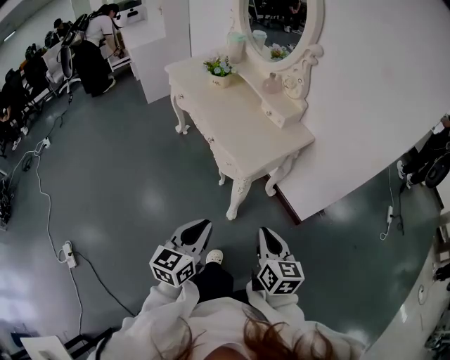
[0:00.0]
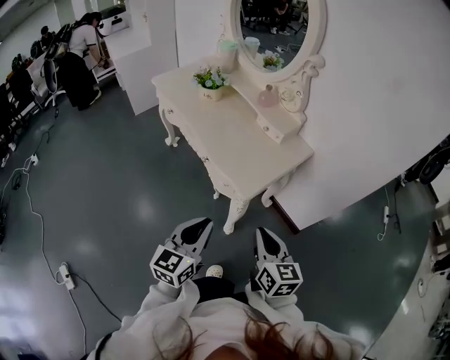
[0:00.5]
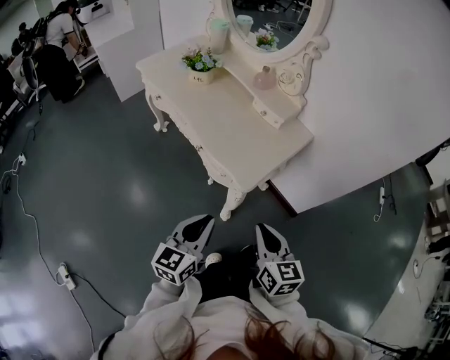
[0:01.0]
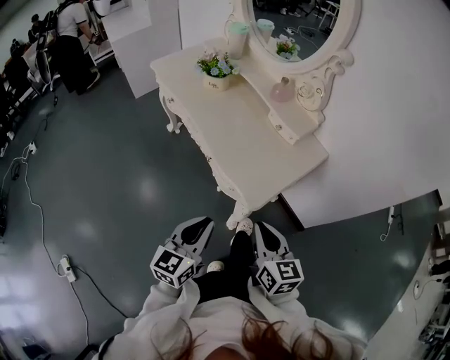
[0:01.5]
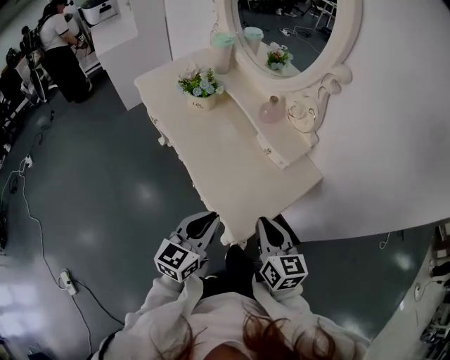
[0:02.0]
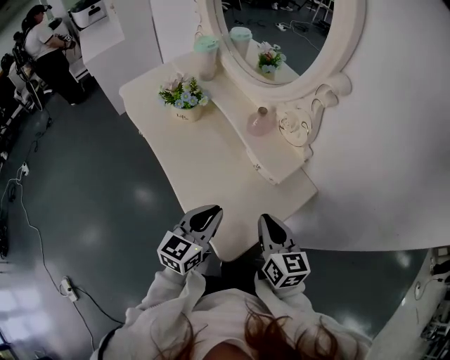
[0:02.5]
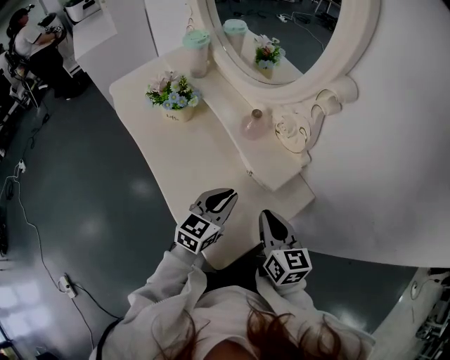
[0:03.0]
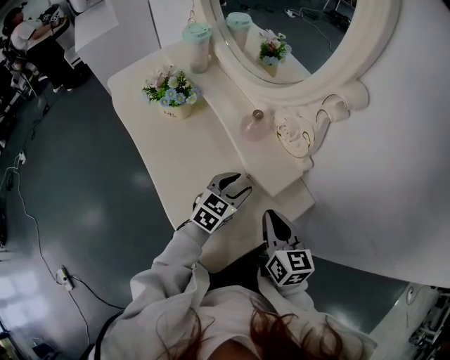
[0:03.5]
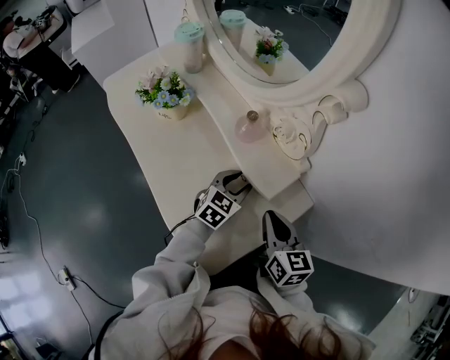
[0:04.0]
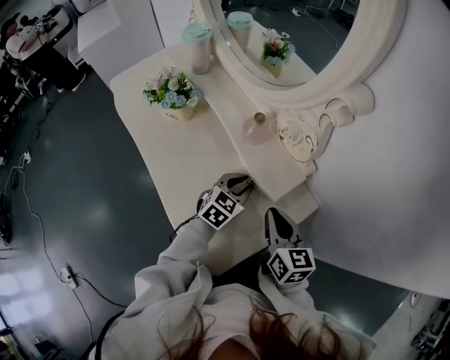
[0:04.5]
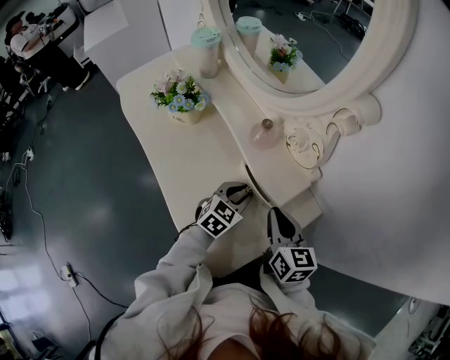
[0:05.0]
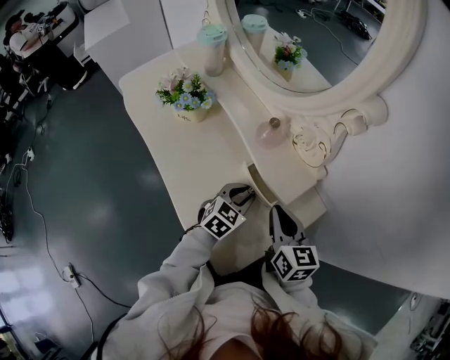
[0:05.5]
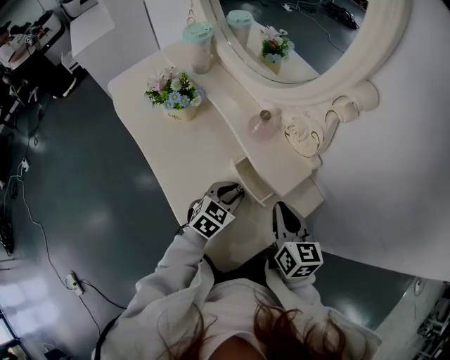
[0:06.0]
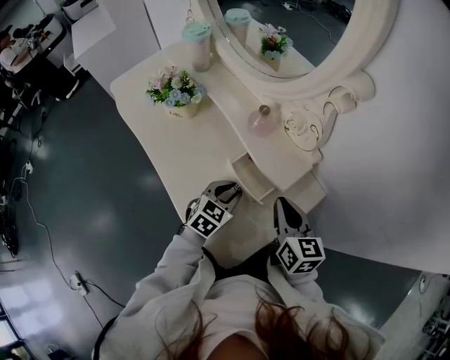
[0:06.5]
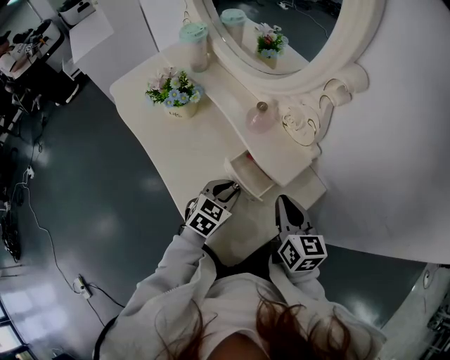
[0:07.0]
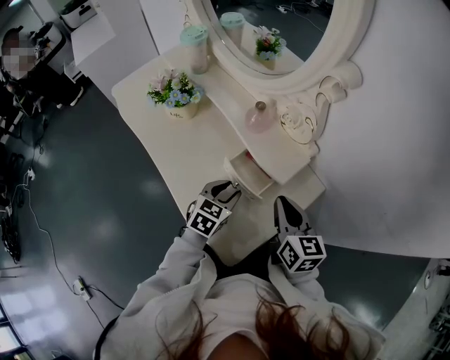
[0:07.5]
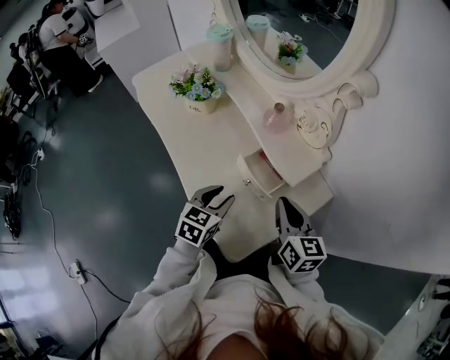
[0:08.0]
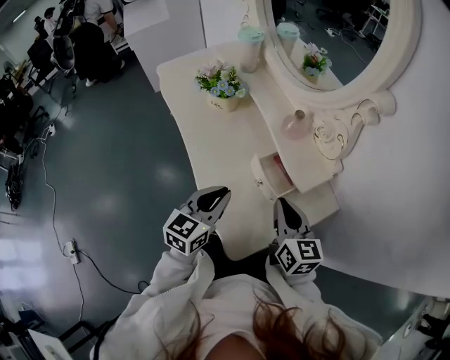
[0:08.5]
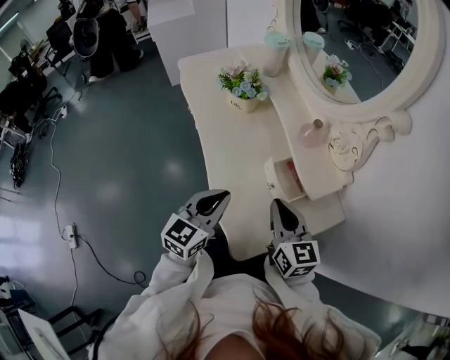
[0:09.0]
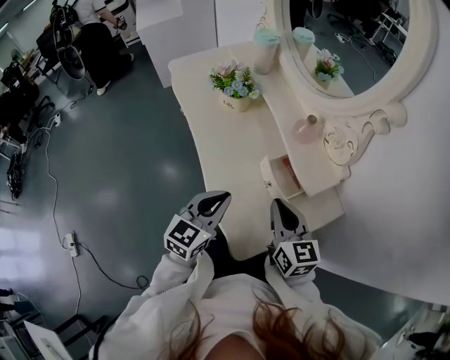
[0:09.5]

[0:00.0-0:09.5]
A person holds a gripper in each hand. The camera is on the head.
0:00.0 to 0:02.0: The grippers both shift forward by about 30 cm.
0:02.0 to 0:04.0: The left gripper heads forward, downward and to the right, covering about 35 cm, swivels about 30 degrees, and opens. Meanwhile the right gripper heads forward and to the right, covering about 20 cm.
0:04.0 to 0:05.5: There are only small adjustments of the grippers.
0:05.5 to 0:07.5: The left gripper ends up roughly 5 cm from where it was.
0:07.5 to 0:09.5: The right gripper shifts roughly 10 cm to the left, and swivels roughly 20 degrees. The left gripper shifts about 15 cm upward, to the left and backward, swivels approximately 30 degrees, and closes.

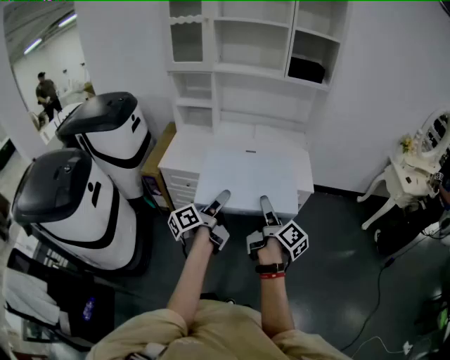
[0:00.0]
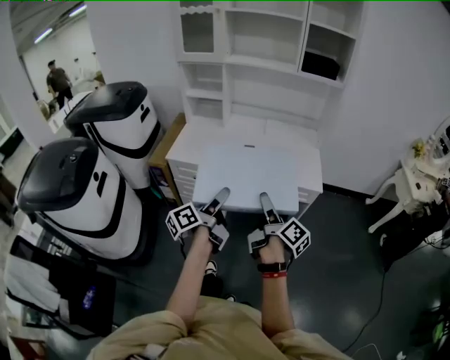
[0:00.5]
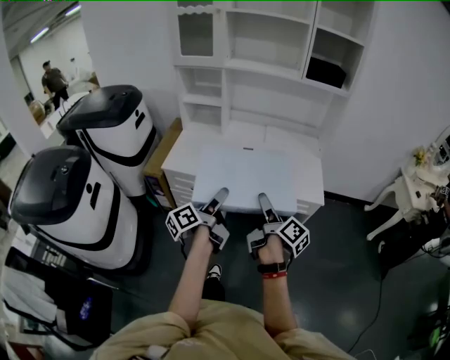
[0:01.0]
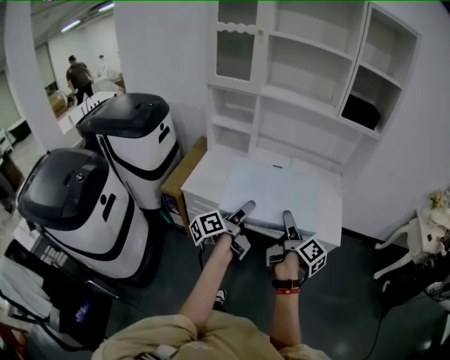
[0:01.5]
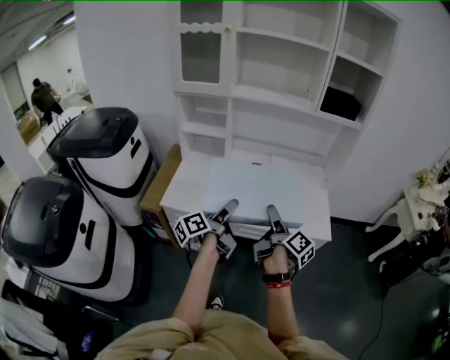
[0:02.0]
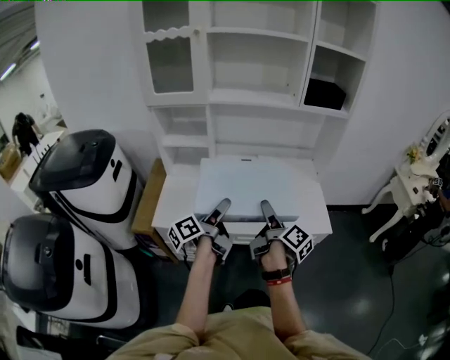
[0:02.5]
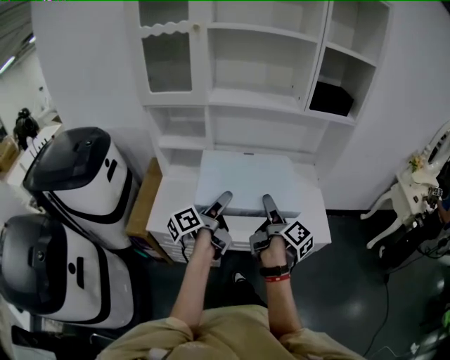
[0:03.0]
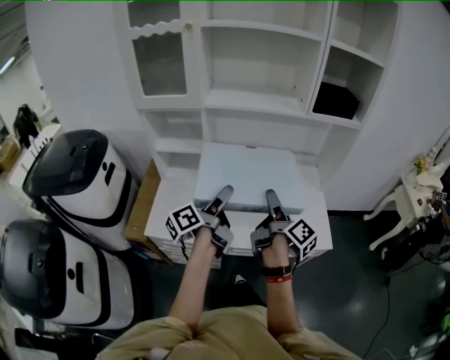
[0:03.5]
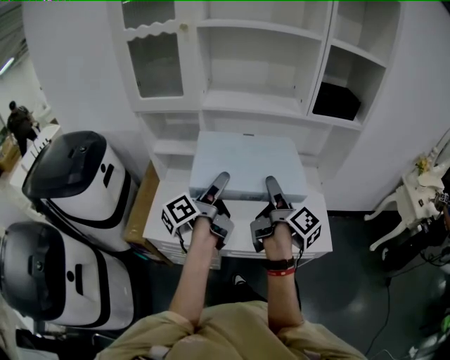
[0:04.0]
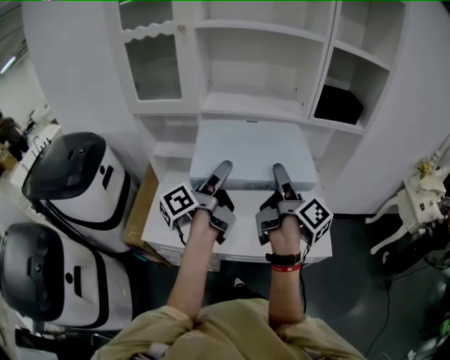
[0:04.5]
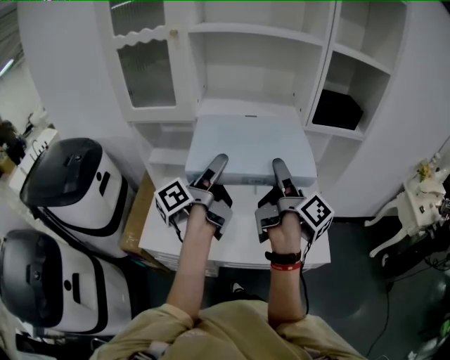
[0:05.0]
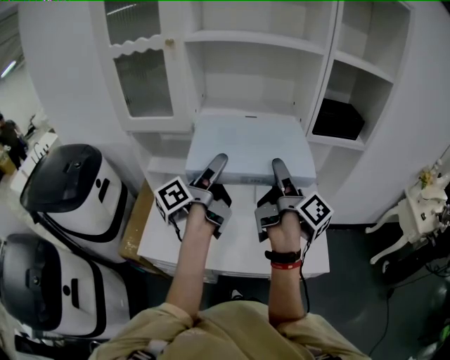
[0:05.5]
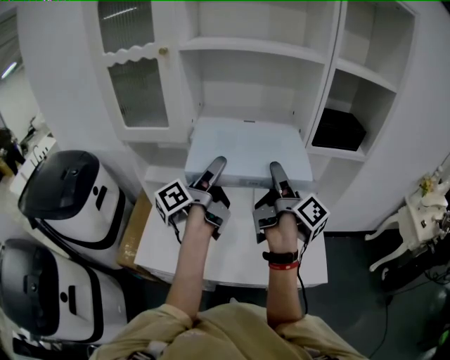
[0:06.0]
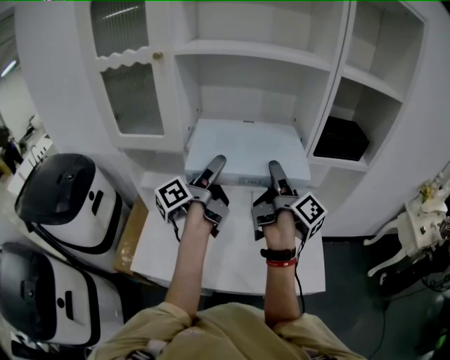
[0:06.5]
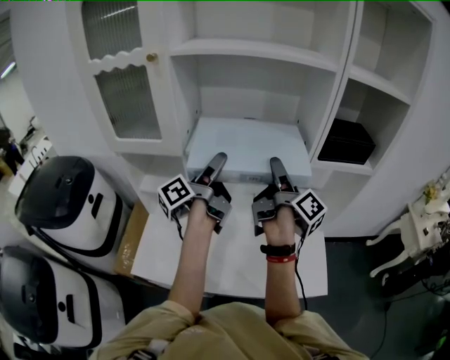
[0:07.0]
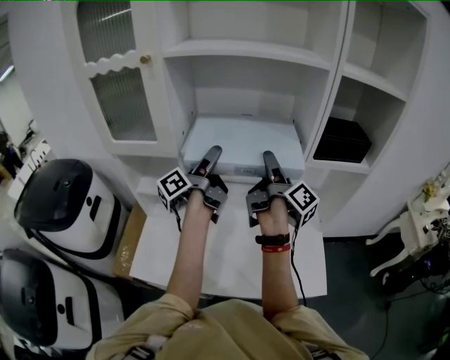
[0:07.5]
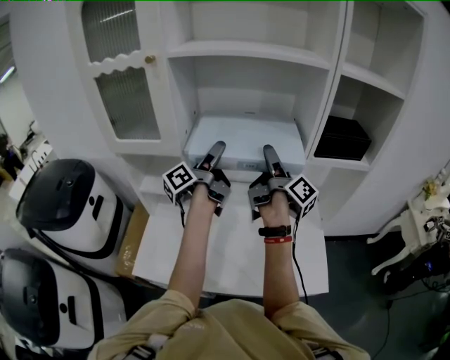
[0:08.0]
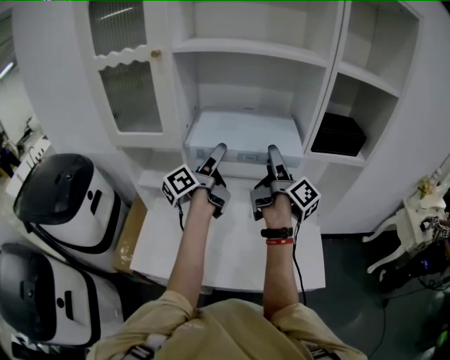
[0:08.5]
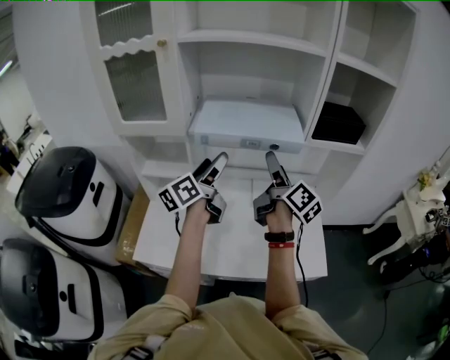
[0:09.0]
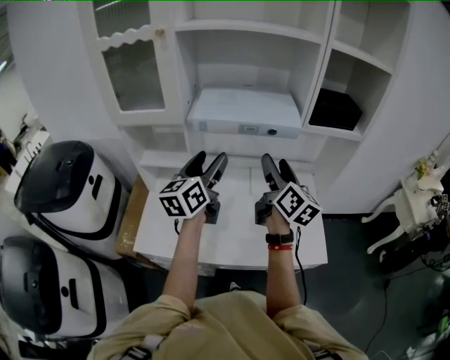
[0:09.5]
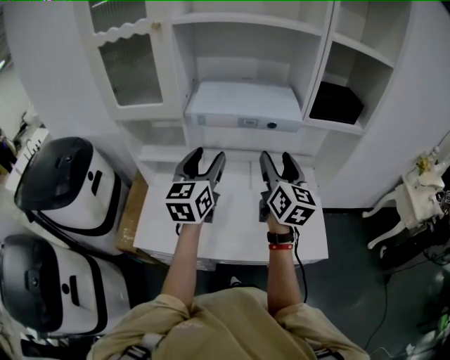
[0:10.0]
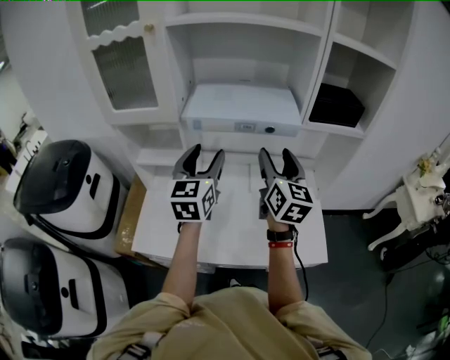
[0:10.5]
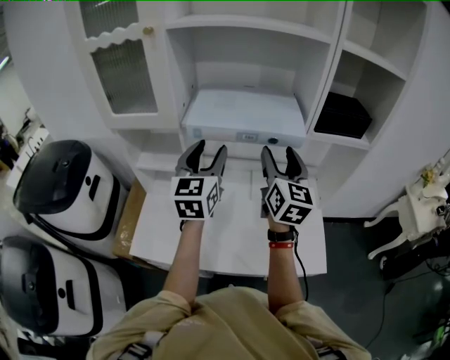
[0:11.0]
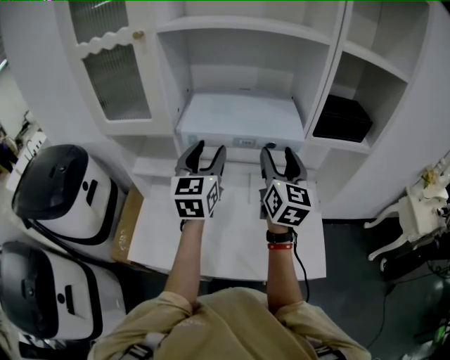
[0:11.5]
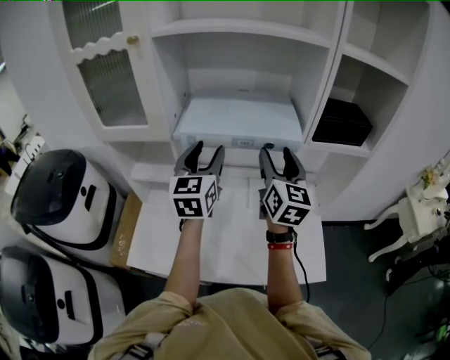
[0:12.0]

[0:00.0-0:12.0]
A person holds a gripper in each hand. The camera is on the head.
0:00.0 to 0:02.0: Both grippers move forward, approximately 25 cm.
0:02.0 to 0:04.0: Both grippers move forward and upward, about 20 cm.
0:04.0 to 0:06.0: Both grippers move forward and upward, approximately 15 cm.
0:06.0 to 0:08.0: Both grippers travel together forward, about 15 cm.
0:08.0 to 0:10.0: Both grippers move backward, roughly 15 cm. The left gripper rotates around the line of its fingers by approximately 70 degrees, clockwise from behind. The right gripper rotates around the line of its fingers by some 70 degrees, counterclockwise from behind.
0:10.0 to 0:12.0: The grippers both shift forward by approximately 10 cm.

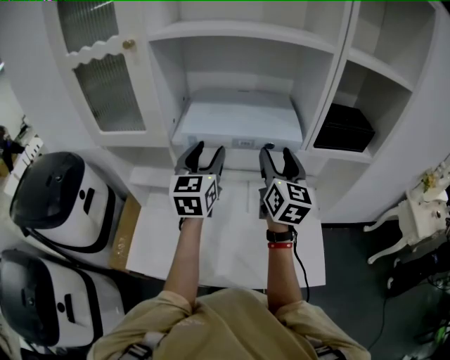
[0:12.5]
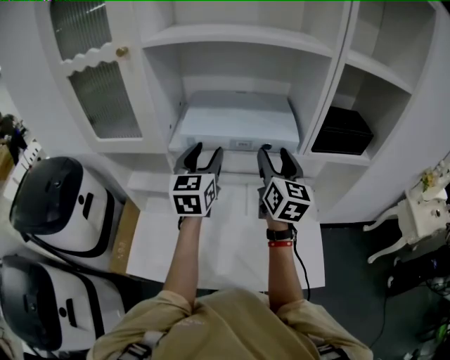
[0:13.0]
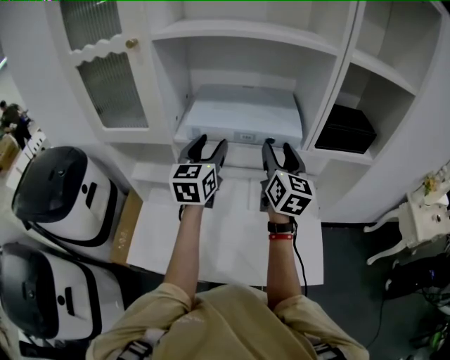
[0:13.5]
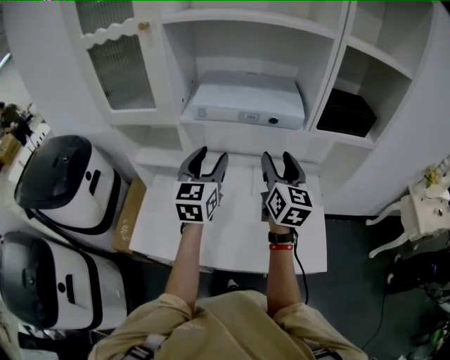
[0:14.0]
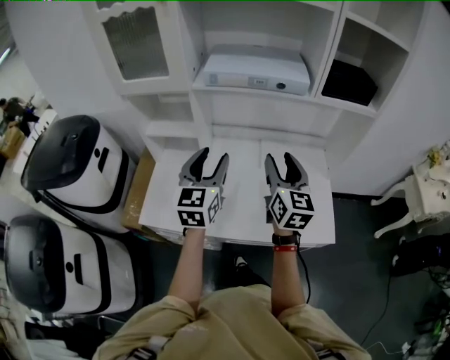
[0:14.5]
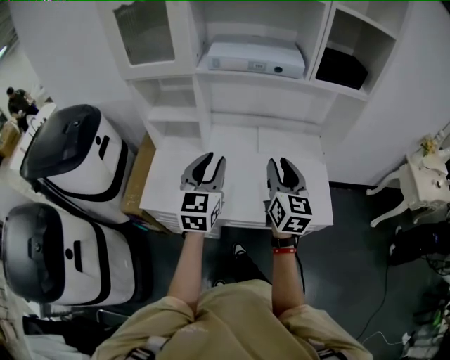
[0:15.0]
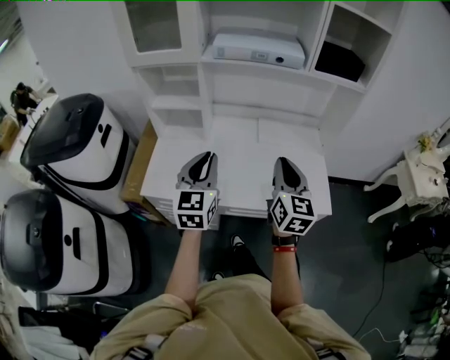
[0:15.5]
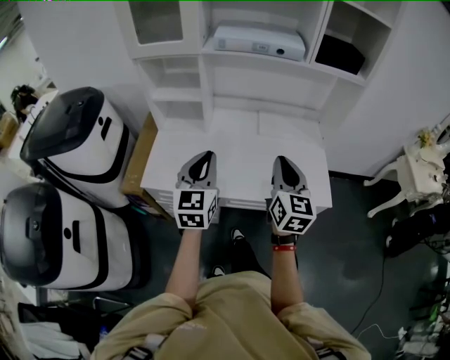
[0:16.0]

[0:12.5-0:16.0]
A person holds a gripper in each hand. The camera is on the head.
0:12.5 to 0:14.5: Both grippers travel together backward and downward, some 20 cm.
0:14.5 to 0:16.0: Both grippers move backward, roughly 15 cm. The left gripper closes. Meanwhile the right gripper closes its fingers.

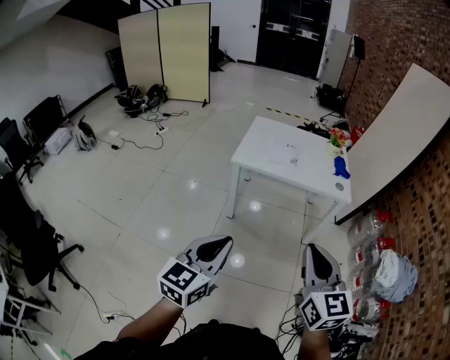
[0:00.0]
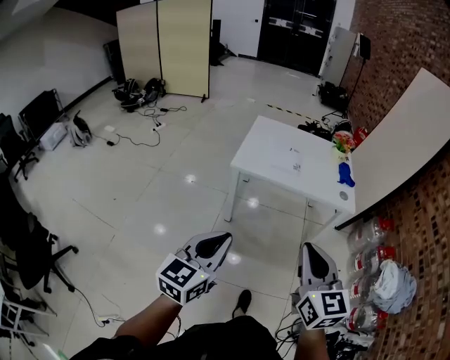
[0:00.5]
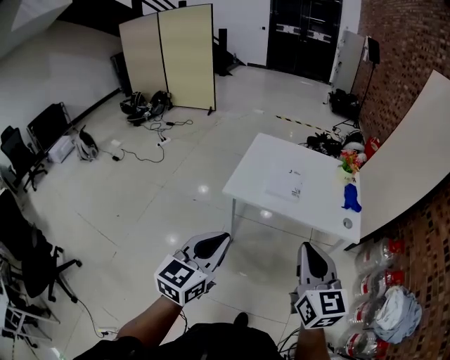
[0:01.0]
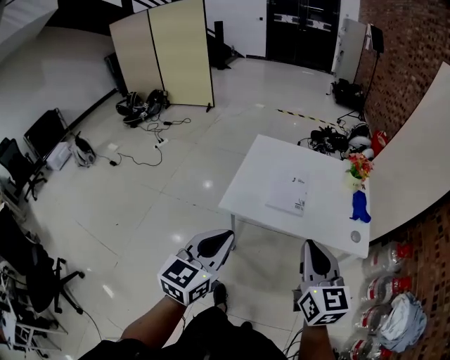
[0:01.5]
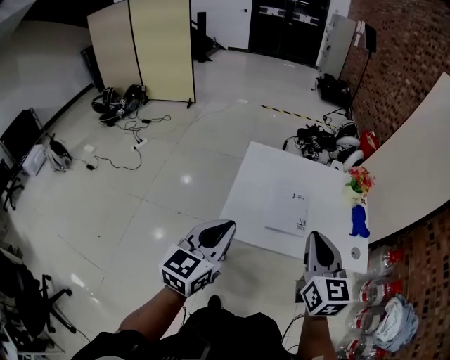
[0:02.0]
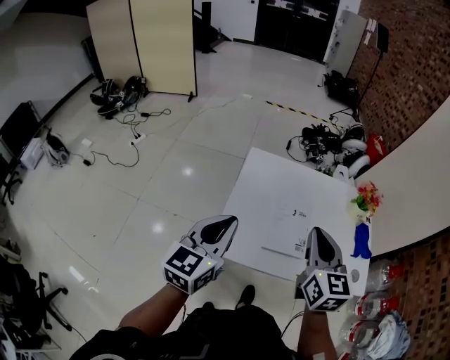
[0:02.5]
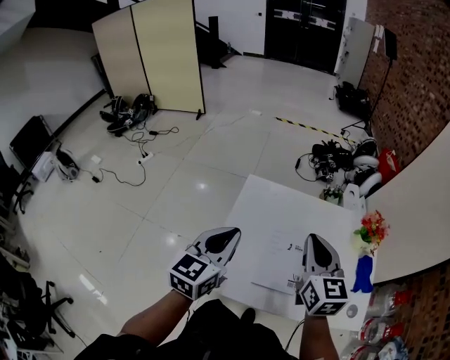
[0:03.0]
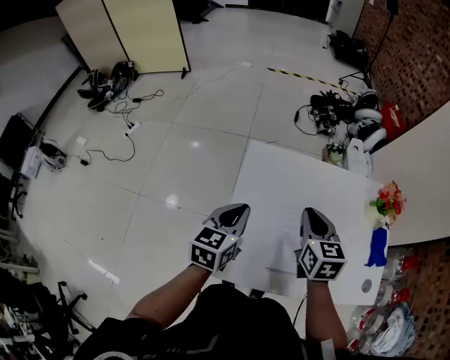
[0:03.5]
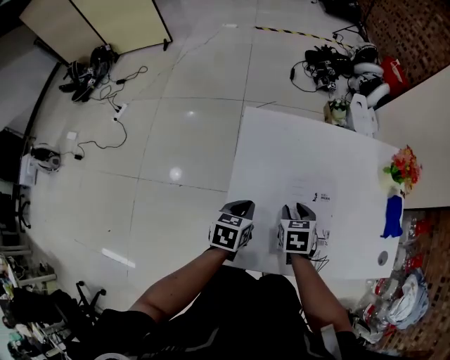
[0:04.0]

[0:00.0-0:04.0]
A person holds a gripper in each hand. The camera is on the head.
0:00.0 to 0:02.0: The pair of grippers is taken forward, some 60 cm.
0:02.0 to 0:04.0: The right gripper heads downward and forward, covering approximately 50 cm, tips its fingers downward by some 50 degrees, and opens its fingers; the left gripper shifts roughly 50 cm forward and downward, and angles its fingers downward, by about 40 degrees.
